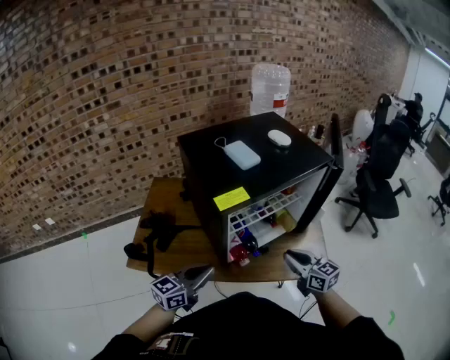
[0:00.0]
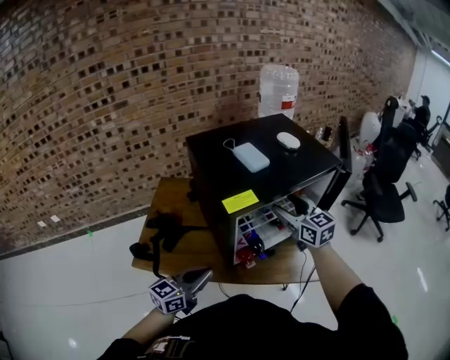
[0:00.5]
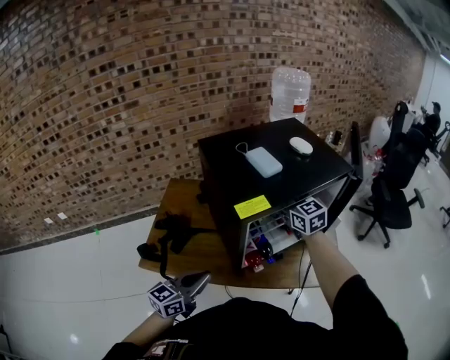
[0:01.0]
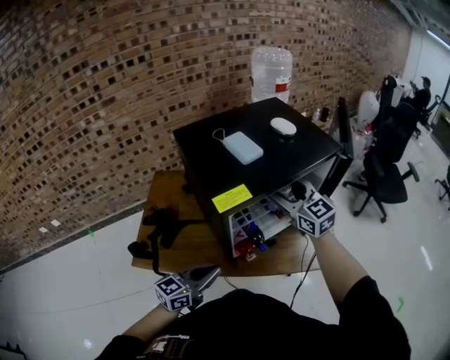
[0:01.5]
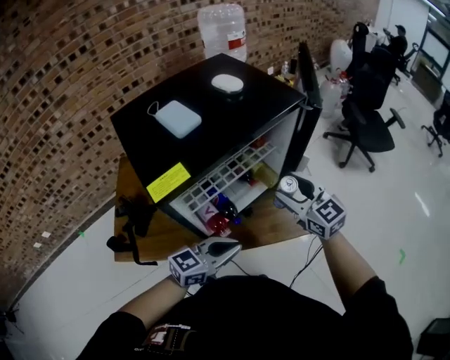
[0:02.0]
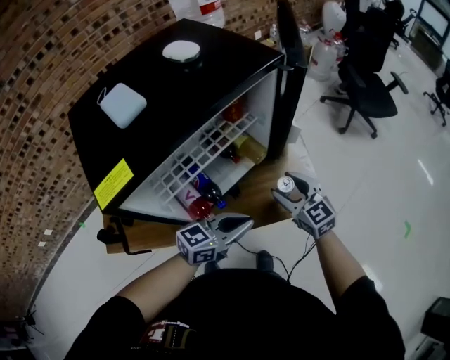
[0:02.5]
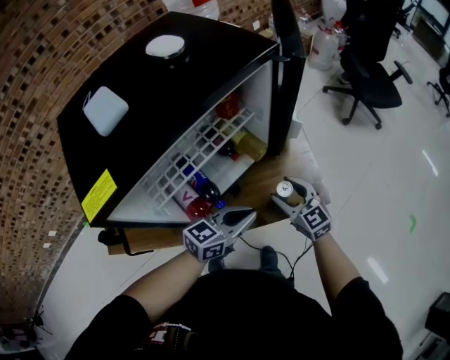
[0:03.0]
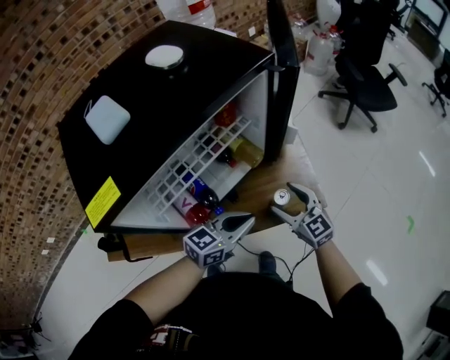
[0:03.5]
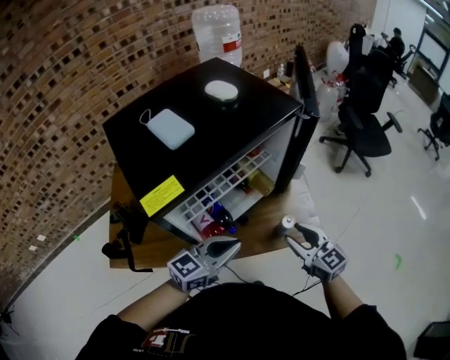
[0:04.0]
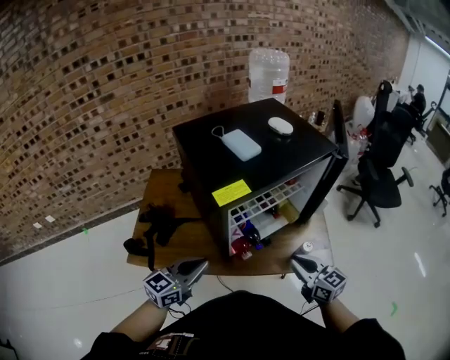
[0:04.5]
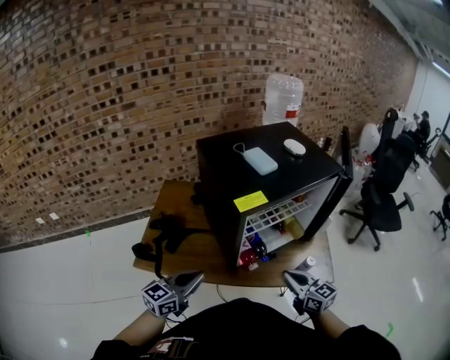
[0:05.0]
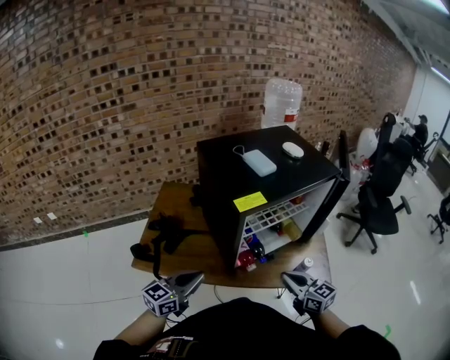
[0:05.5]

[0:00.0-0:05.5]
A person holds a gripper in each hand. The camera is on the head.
0:00.0 to 0:02.0: The right gripper goes approximately 10 cm forward and upward, reaches some 15 cm to the left, then returns, and opens. The left gripper heads to the right, covering roughly 15 cm, and changes its angle by about 30 degrees.
0:02.0 to 0:03.5: The right gripper shifts some 20 cm downward and to the right. The left gripper heads forward, to the right and downward, covering approximately 15 cm.
0:03.5 to 0:05.5: The right gripper travels to the left, backward and upward by some 25 cm, rotates roughly 20 degrees, and closes up; the left gripper heads to the left and backward, covering roughly 40 cm, and rotates approximately 30 degrees.

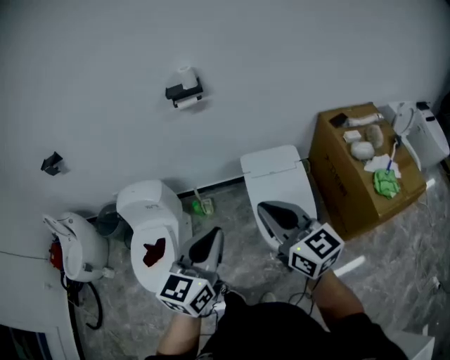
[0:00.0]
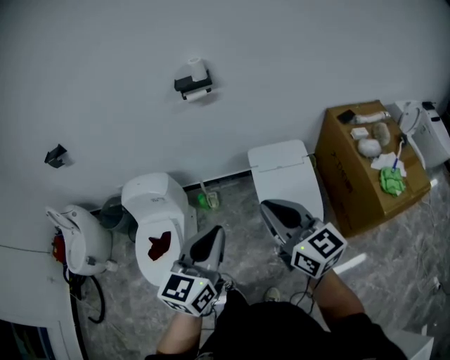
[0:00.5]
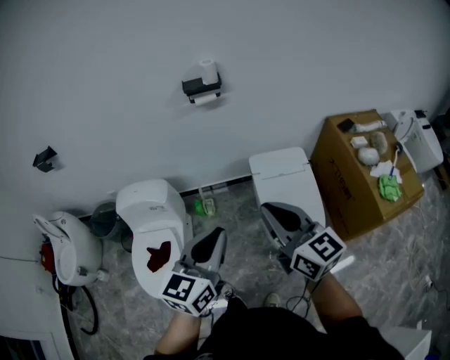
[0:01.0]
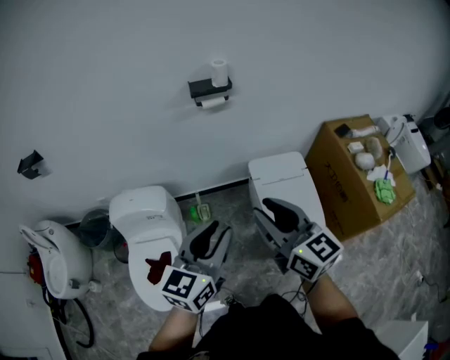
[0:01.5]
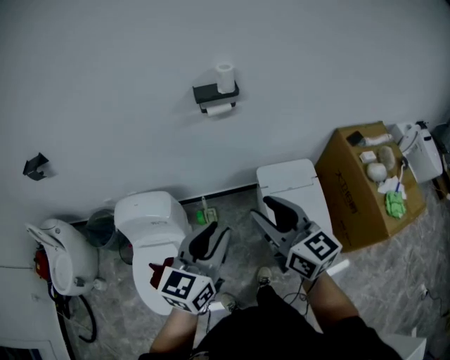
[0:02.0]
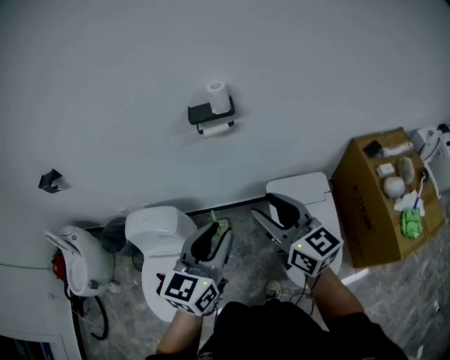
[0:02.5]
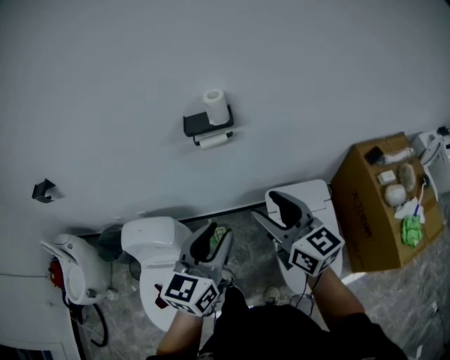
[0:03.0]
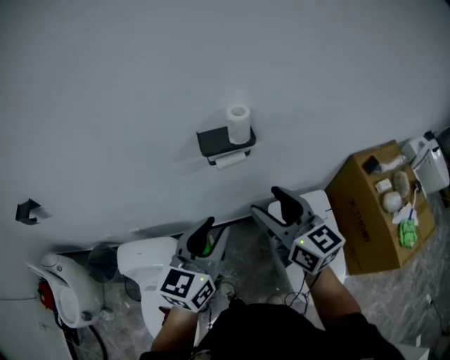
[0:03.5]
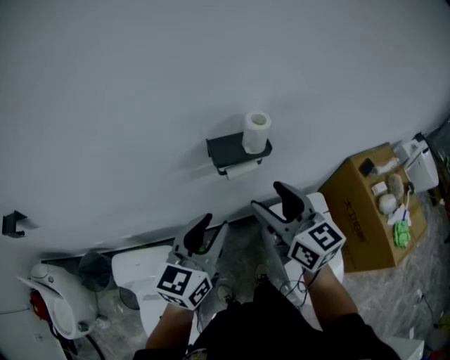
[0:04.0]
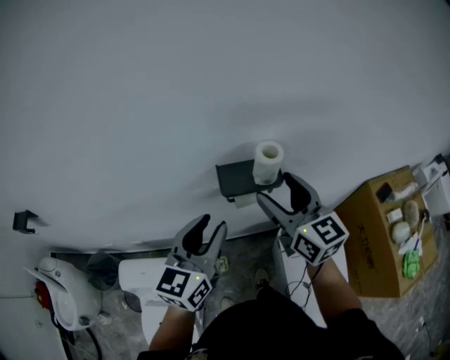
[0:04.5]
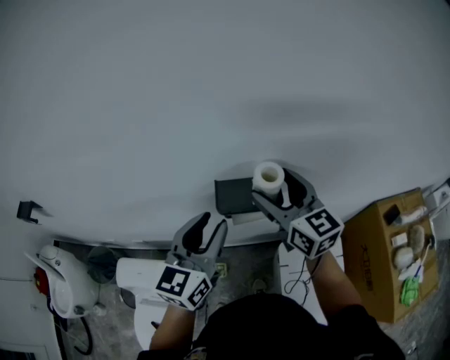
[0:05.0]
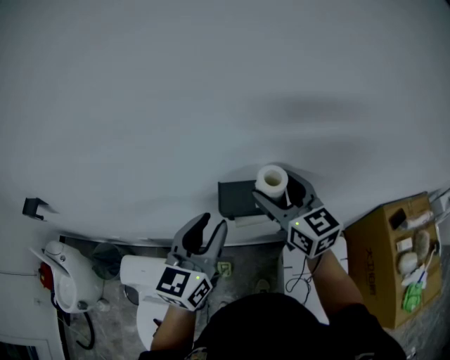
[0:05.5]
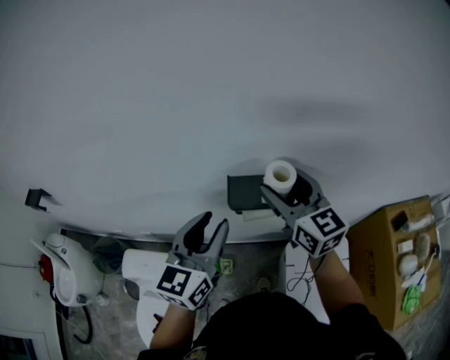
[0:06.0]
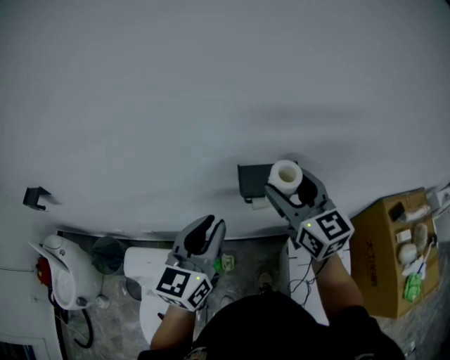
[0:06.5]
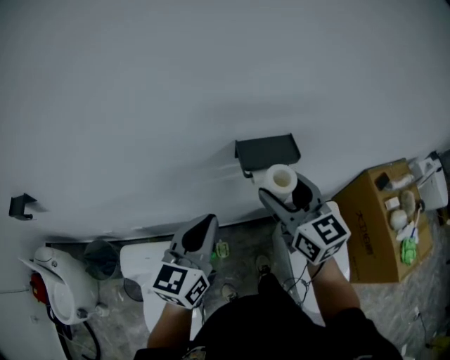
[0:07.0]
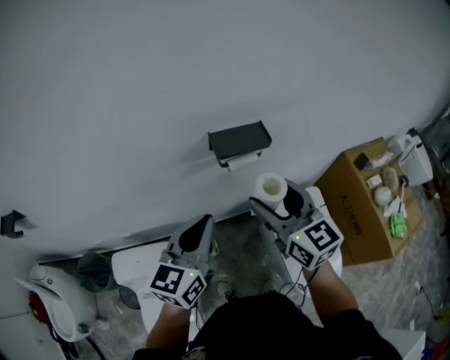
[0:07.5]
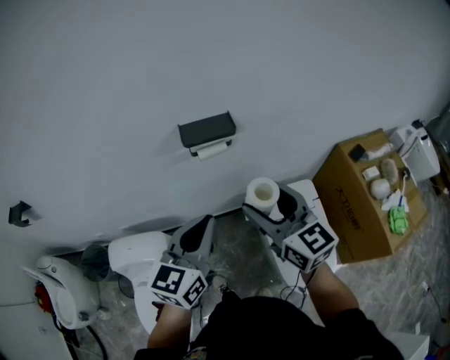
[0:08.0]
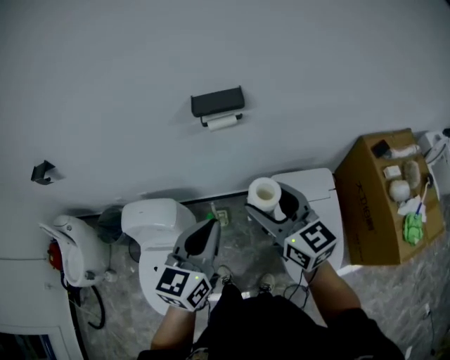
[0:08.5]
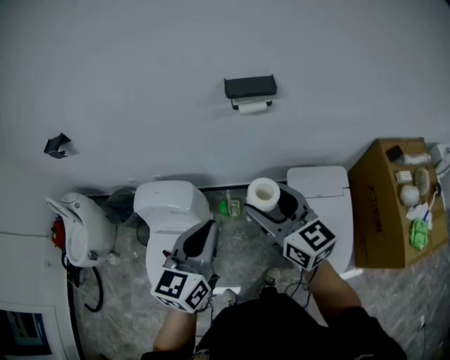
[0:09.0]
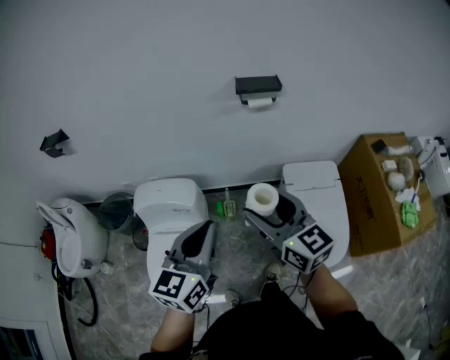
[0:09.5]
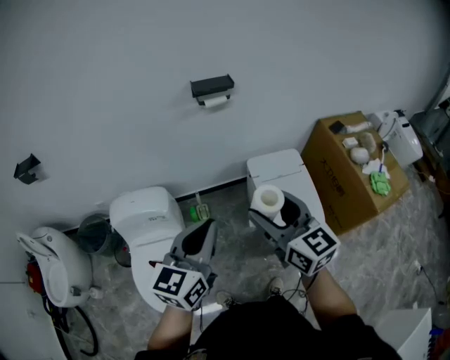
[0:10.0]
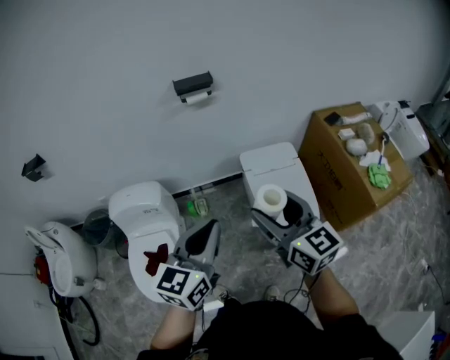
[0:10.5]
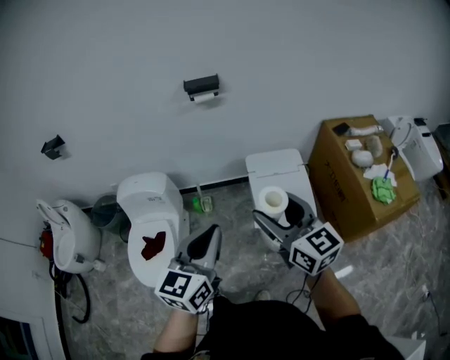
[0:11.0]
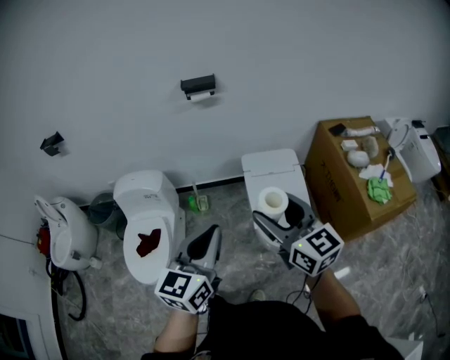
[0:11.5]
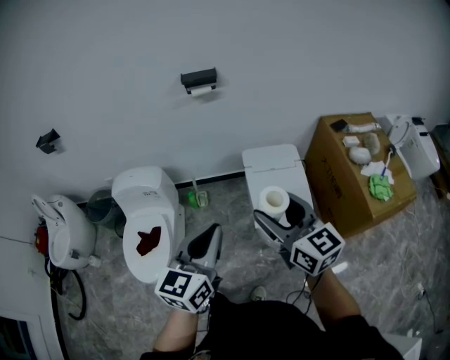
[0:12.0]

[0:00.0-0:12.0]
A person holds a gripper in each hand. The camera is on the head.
0:00.0 to 0:02.0: The right gripper heads to the left and forward, covering roughly 25 cm, and opens up; the left gripper moves forward and to the left, about 25 cm, and opens its fingers.
0:02.0 to 0:04.0: The two grippers go roughly 35 cm forward. The right gripper opens its fingers.
0:04.0 to 0:06.0: The right gripper shifts about 20 cm forward; the left gripper goes some 10 cm forward.
0:06.0 to 0:08.0: Both grippers move backward, approximately 25 cm. The left gripper closes.
0:08.0 to 0:10.0: Both grippers travel together backward, some 30 cm.
0:10.0 to 0:12.0: The grippers both shift to the right and backward by some 25 cm.

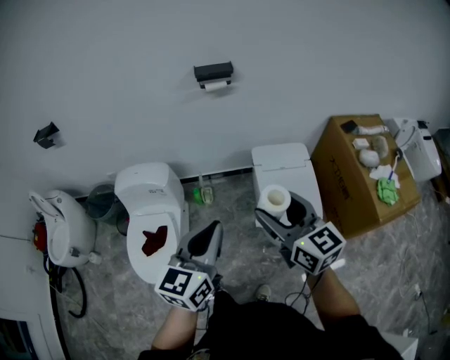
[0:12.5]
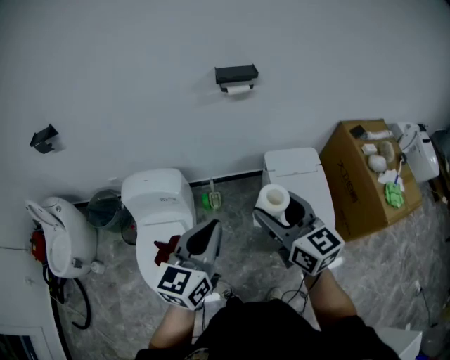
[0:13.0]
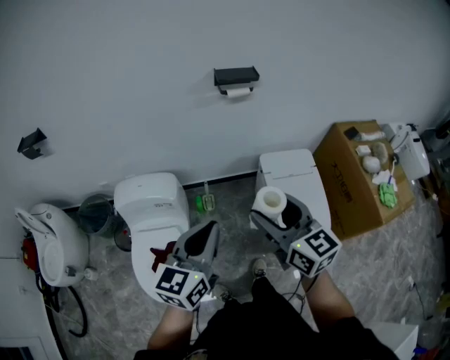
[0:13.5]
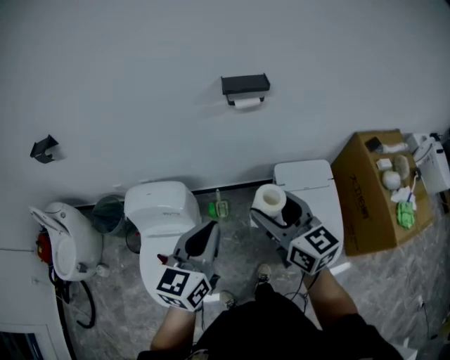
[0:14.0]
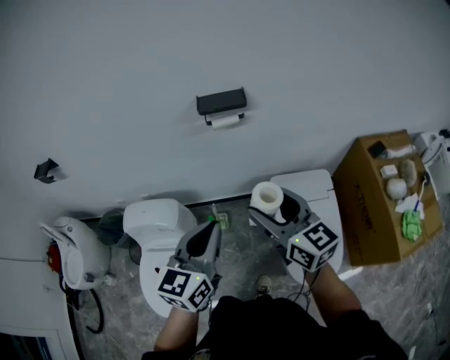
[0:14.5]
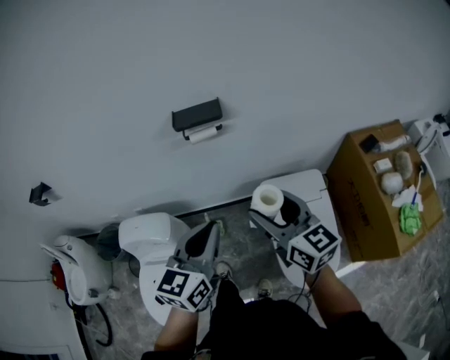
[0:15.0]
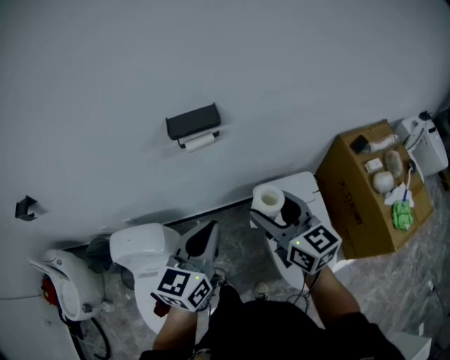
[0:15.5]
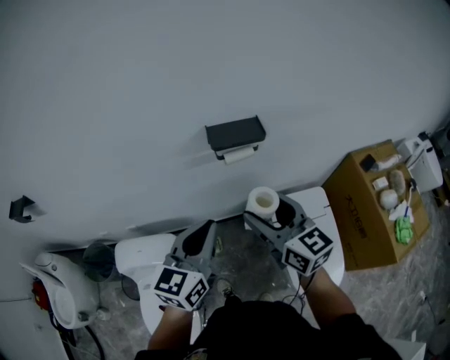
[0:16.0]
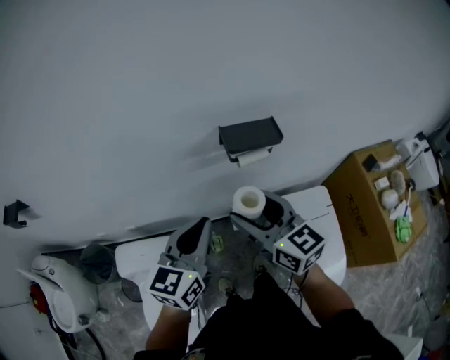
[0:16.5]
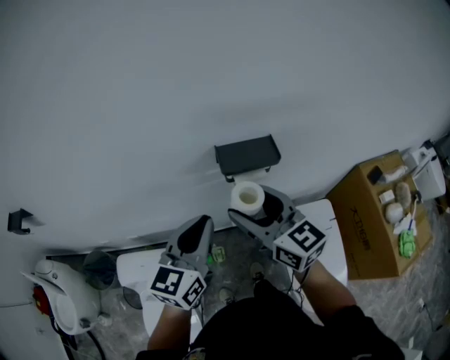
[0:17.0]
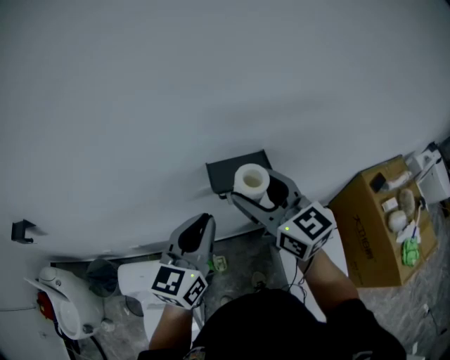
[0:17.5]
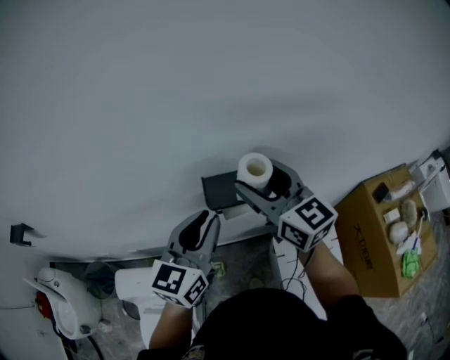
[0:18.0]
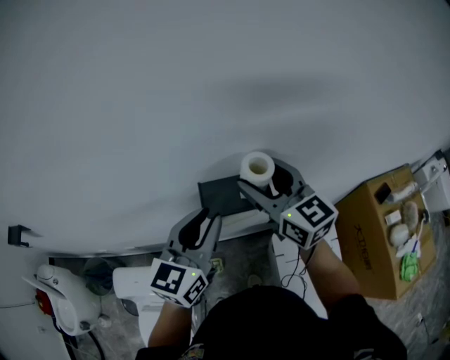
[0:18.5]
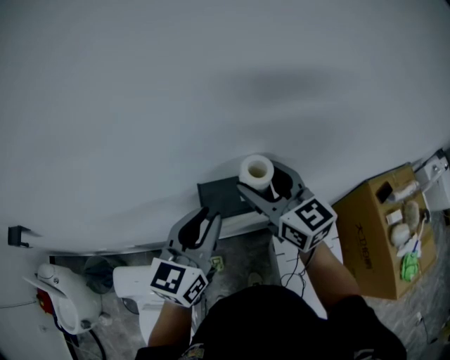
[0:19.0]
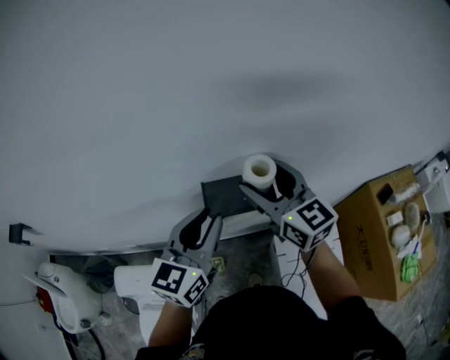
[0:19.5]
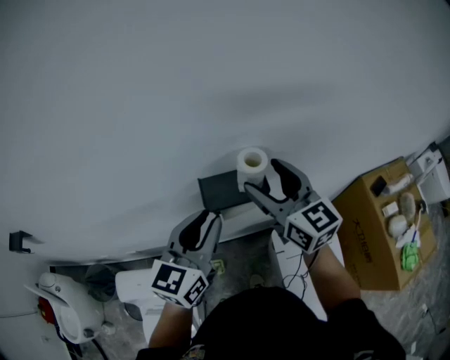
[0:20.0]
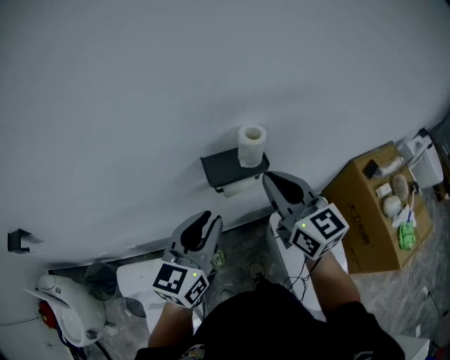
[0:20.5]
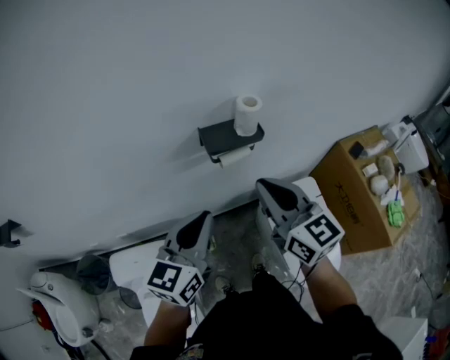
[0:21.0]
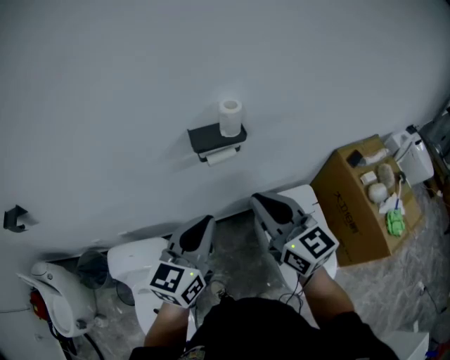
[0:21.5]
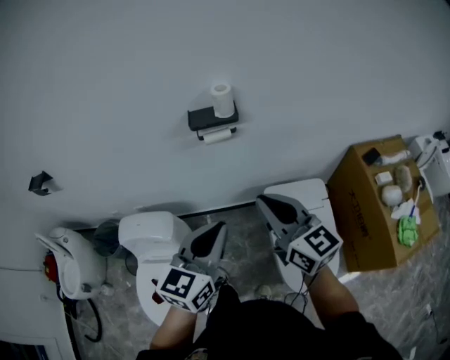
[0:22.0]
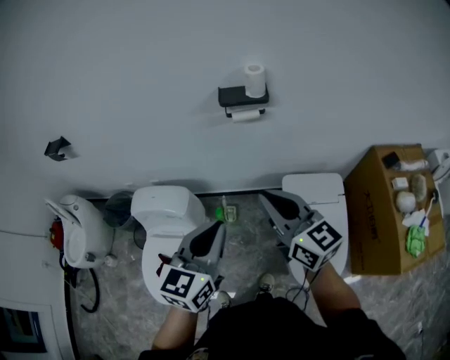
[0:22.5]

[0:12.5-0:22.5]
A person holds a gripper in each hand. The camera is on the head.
0:12.5 to 0:14.5: The grippers both shift forward by approximately 30 cm.
0:14.5 to 0:16.5: The grippers both shift forward and to the left by approximately 25 cm.
0:16.5 to 0:18.5: The grippers both shift forward and to the right by about 25 cm.
0:18.5 to 0:20.5: The grippers both shift backward by about 10 cm. The right gripper closes up.
0:20.5 to 0:22.5: The two grippers go approximately 30 cm backward. The right gripper changes its angle by roughly 20 degrees.
